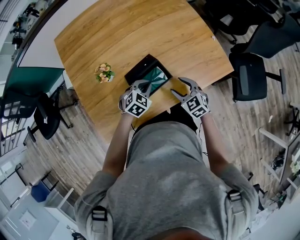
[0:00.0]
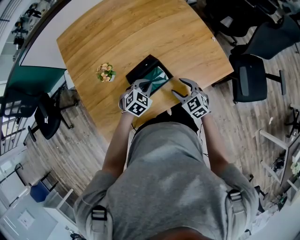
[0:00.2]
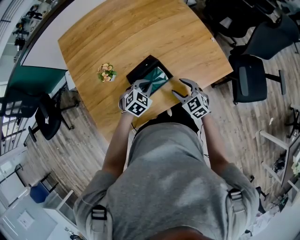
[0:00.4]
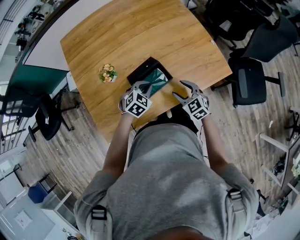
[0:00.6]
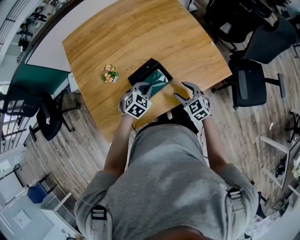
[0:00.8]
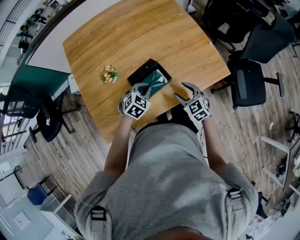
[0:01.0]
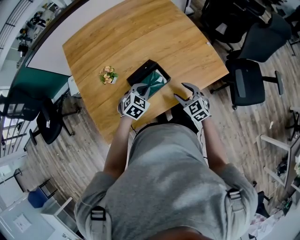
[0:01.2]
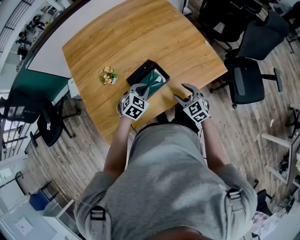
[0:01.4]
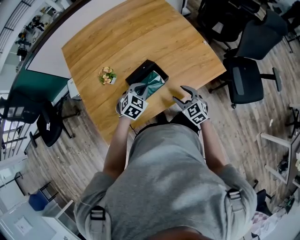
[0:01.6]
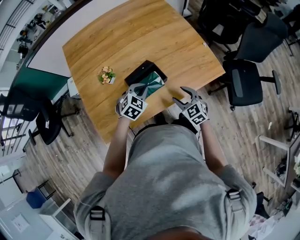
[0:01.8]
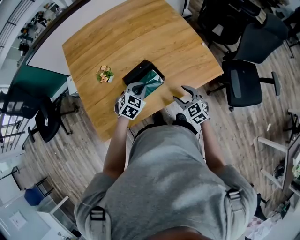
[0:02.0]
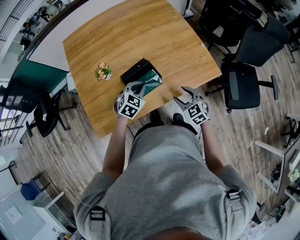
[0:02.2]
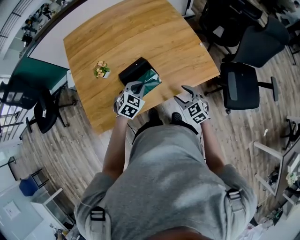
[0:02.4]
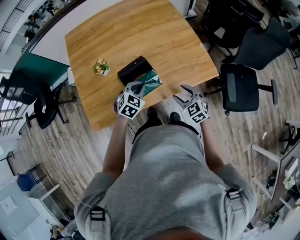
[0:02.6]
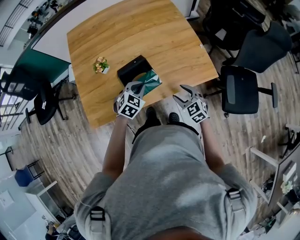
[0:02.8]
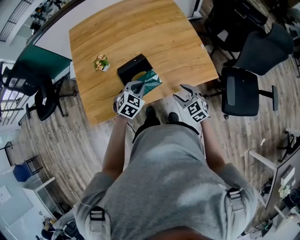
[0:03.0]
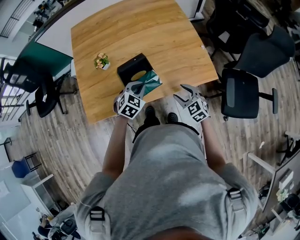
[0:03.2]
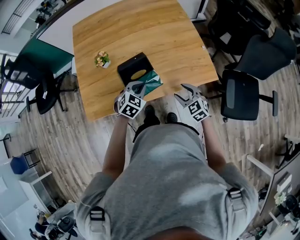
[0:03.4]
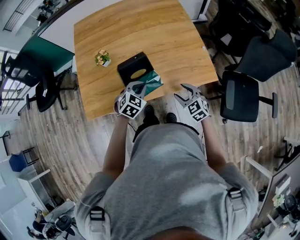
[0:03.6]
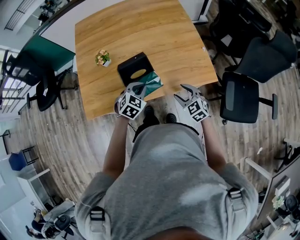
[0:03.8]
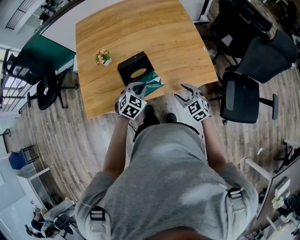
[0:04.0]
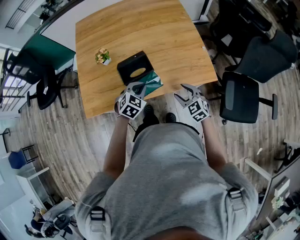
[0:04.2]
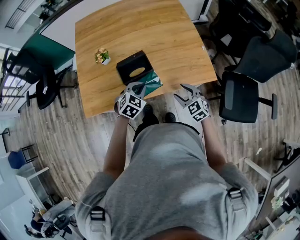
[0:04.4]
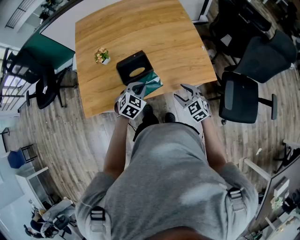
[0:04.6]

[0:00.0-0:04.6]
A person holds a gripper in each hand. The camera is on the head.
0:00.0 to 0:01.6: The right gripper goes approximately 5 cm backward, while the left gripper moves upward, approximately 5 cm.
0:01.6 to 0:03.0: Both grippers travel together to the right, approximately 10 cm.
0:03.0 to 0:04.6: The grippers make only small movements.

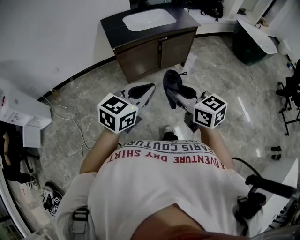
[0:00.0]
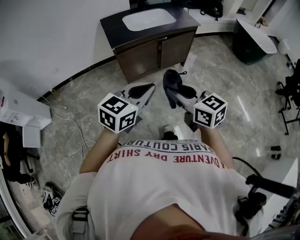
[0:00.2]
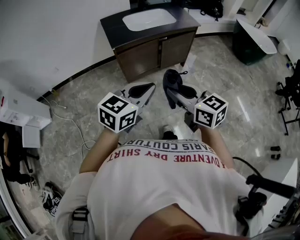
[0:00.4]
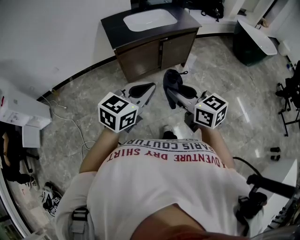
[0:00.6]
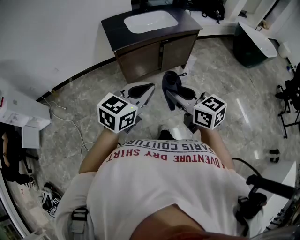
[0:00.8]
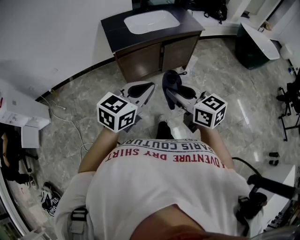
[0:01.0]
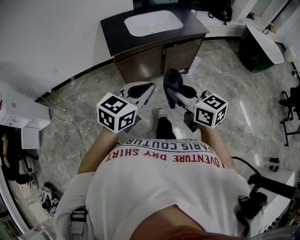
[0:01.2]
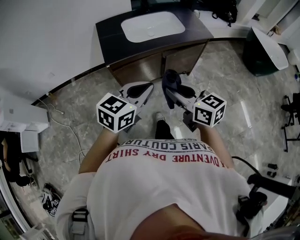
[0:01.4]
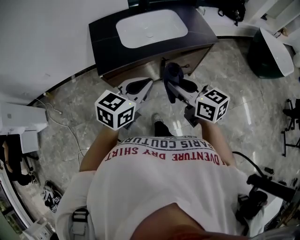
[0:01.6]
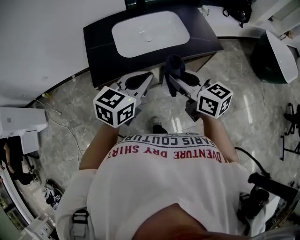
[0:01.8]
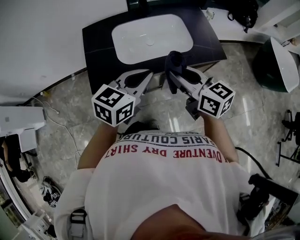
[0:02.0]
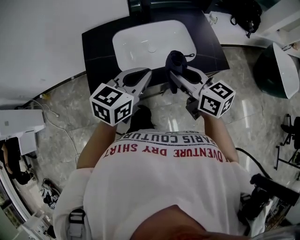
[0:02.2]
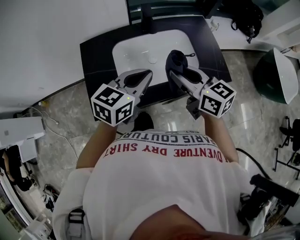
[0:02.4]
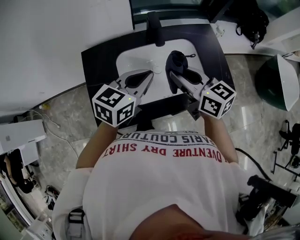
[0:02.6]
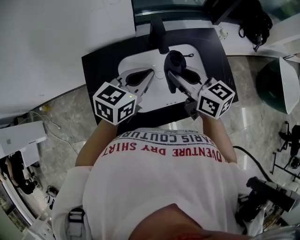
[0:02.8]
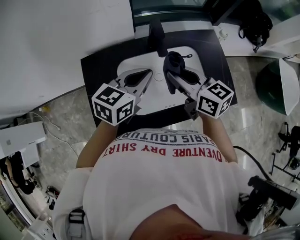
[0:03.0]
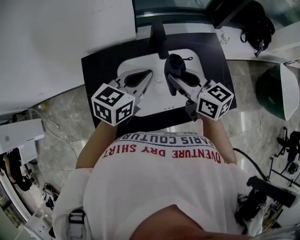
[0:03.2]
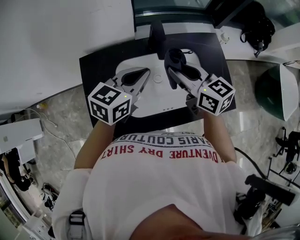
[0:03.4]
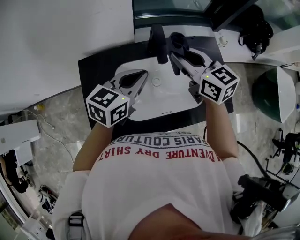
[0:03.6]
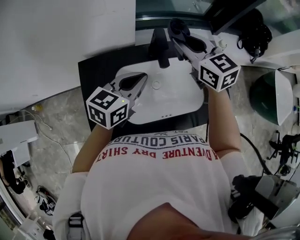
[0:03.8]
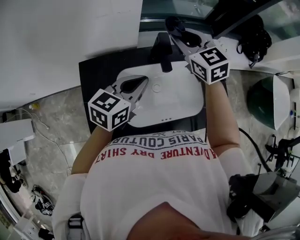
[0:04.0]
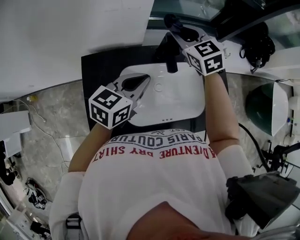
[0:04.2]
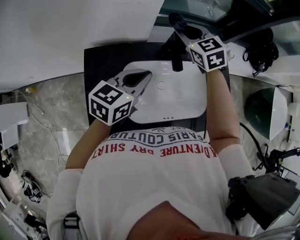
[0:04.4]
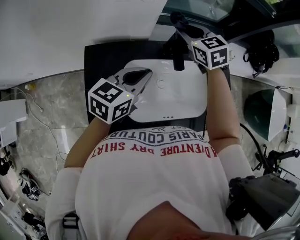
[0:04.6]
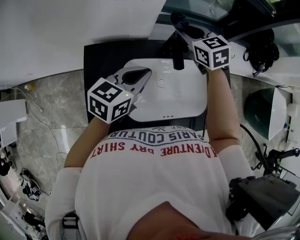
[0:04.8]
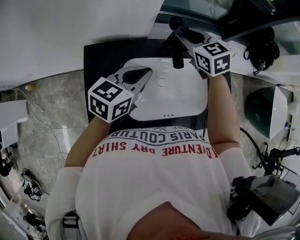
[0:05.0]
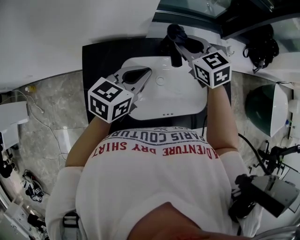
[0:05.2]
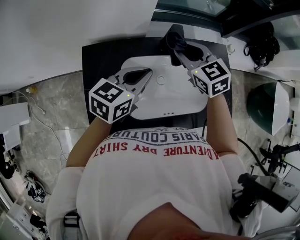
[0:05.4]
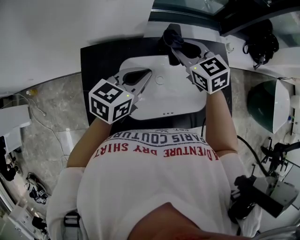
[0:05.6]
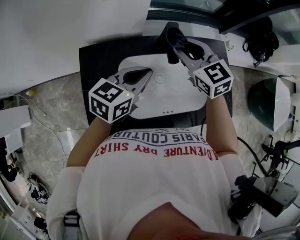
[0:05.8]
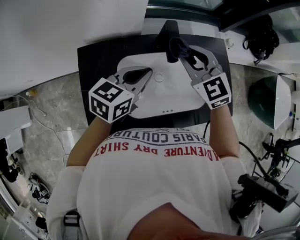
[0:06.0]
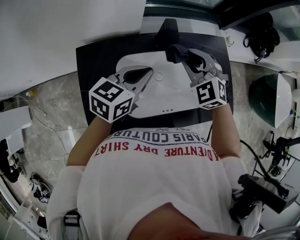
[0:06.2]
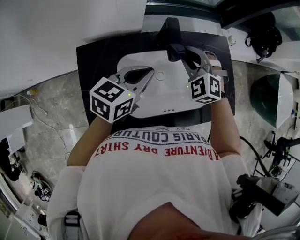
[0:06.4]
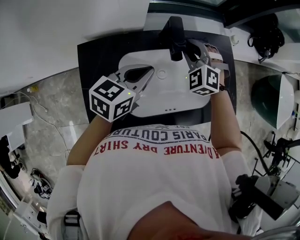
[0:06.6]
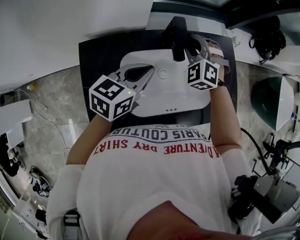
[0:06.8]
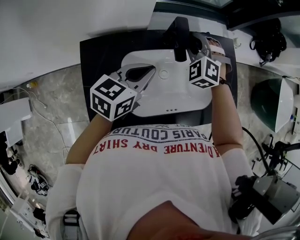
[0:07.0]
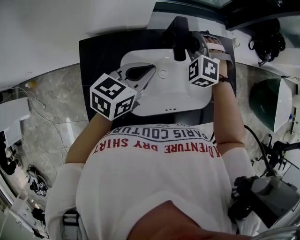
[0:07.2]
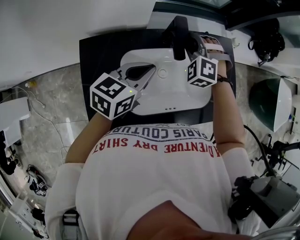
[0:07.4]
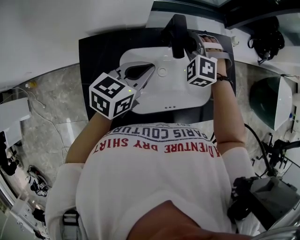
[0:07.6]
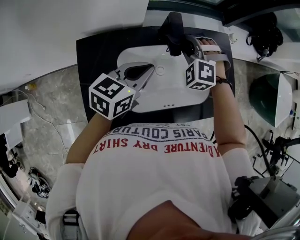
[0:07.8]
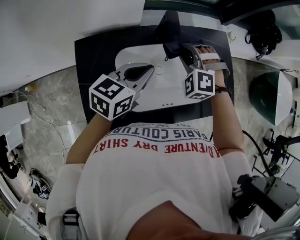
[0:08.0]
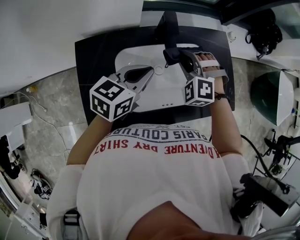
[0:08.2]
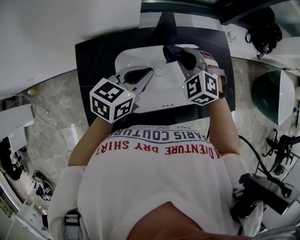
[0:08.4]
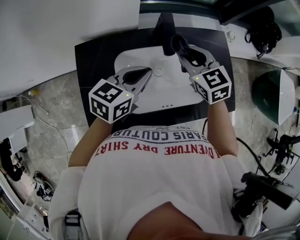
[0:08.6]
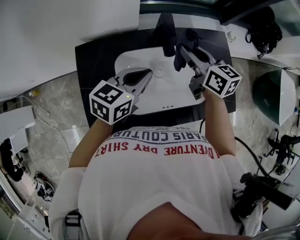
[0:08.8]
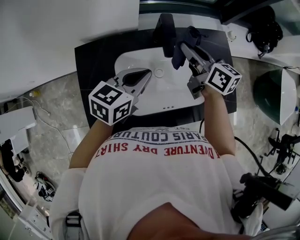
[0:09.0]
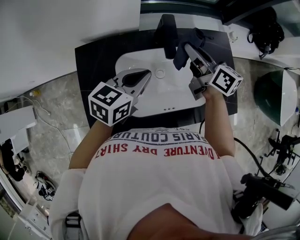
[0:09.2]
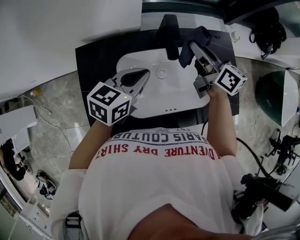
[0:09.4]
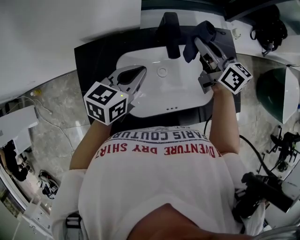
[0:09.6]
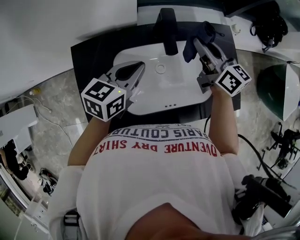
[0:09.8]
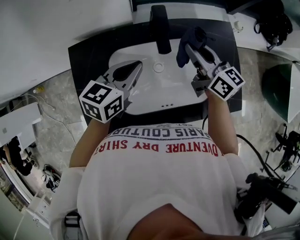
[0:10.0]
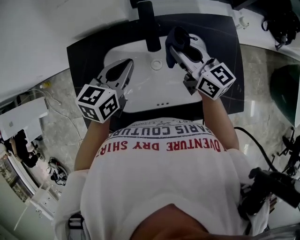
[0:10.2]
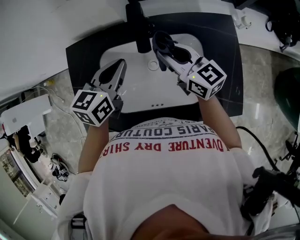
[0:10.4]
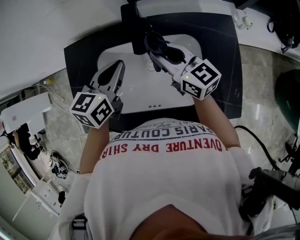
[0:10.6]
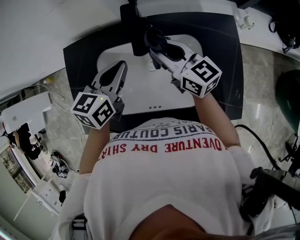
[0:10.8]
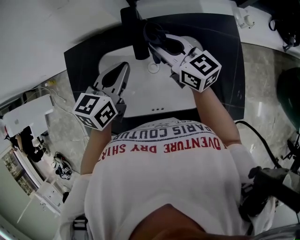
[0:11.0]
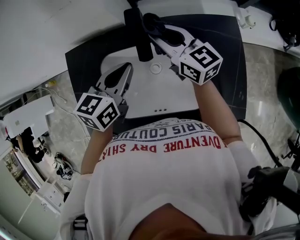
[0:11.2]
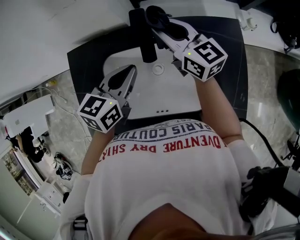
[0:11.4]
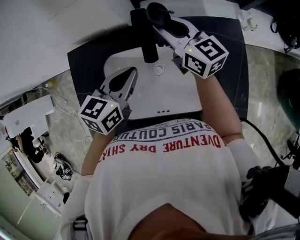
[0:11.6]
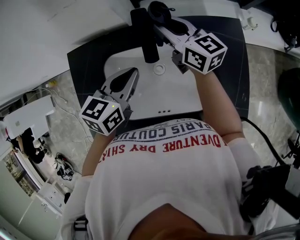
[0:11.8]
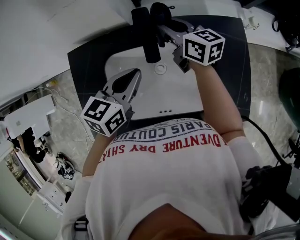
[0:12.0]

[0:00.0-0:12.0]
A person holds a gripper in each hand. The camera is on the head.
0:00.0 to 0:01.6: Both grippers travel together forward, some 40 cm.
0:01.6 to 0:03.0: The pair of grippers is taken forward, approximately 50 cm.
0:03.0 to 0:04.4: The left gripper shifts roughly 5 cm to the left. Meanwhile the right gripper travels forward by about 25 cm, and changes its angle by about 40 degrees.
0:04.4 to 0:06.0: The right gripper shifts some 10 cm backward.
0:06.0 to 0:07.6: The right gripper goes roughly 10 cm downward and forward, and rotates around the line of its fingers by roughly 40 degrees, counterclockwise from behind.
0:07.6 to 0:09.0: The right gripper travels upward by about 5 cm, and twists about 100 degrees clockwise, seen from behind.
0:09.0 to 0:10.4: The left gripper shifts by about 5 cm, and swivels about 20 degrees, while the right gripper is displaced downward by roughly 5 cm, and swivels some 20 degrees.
0:10.4 to 0:12.0: The right gripper travels forward by some 15 cm.

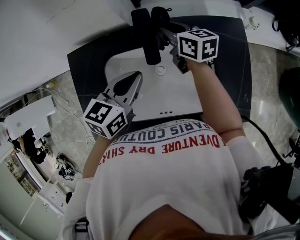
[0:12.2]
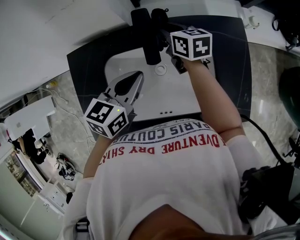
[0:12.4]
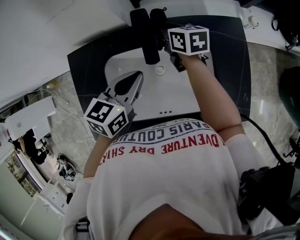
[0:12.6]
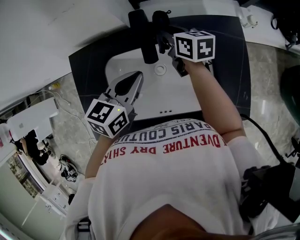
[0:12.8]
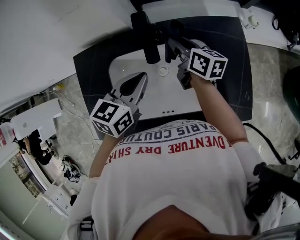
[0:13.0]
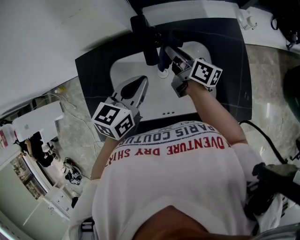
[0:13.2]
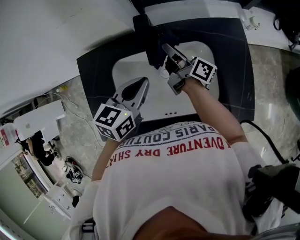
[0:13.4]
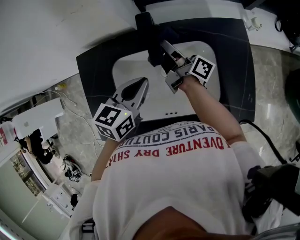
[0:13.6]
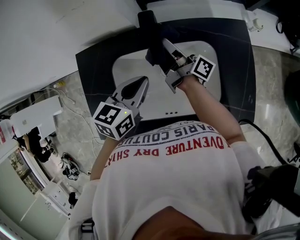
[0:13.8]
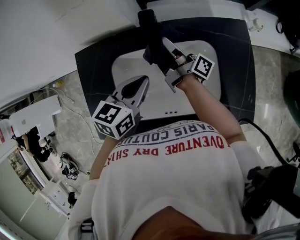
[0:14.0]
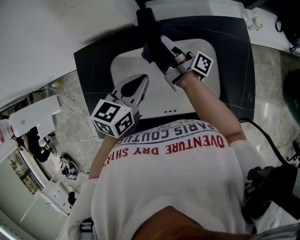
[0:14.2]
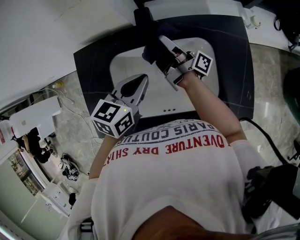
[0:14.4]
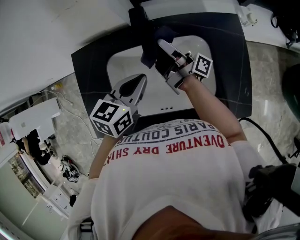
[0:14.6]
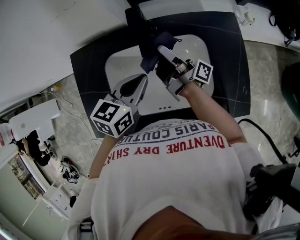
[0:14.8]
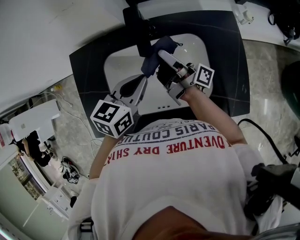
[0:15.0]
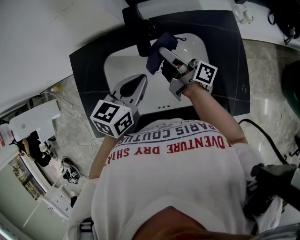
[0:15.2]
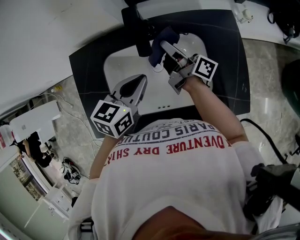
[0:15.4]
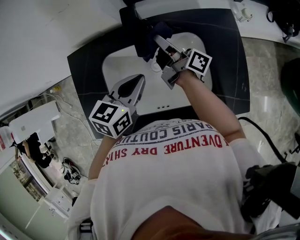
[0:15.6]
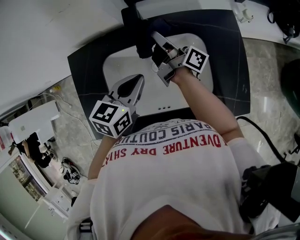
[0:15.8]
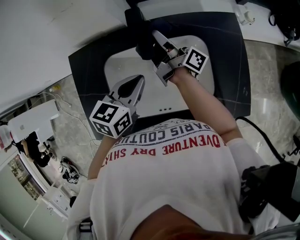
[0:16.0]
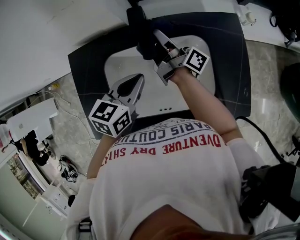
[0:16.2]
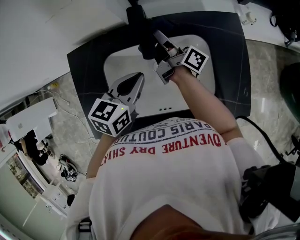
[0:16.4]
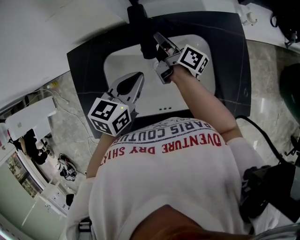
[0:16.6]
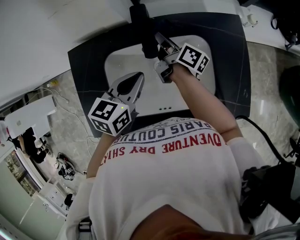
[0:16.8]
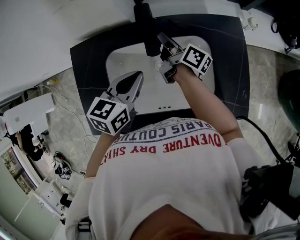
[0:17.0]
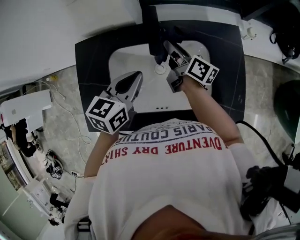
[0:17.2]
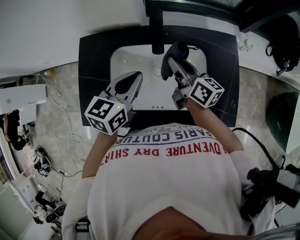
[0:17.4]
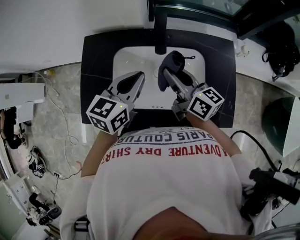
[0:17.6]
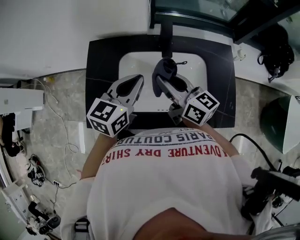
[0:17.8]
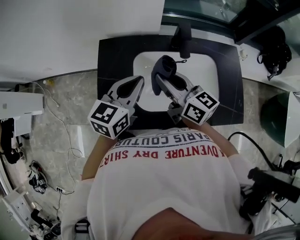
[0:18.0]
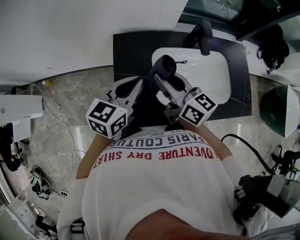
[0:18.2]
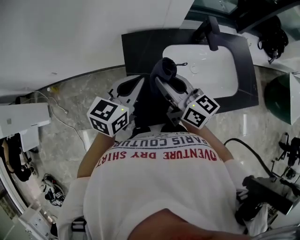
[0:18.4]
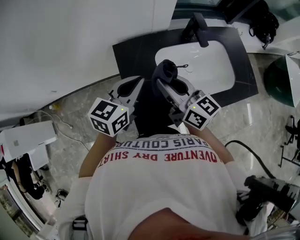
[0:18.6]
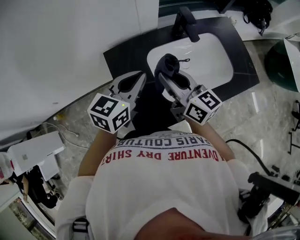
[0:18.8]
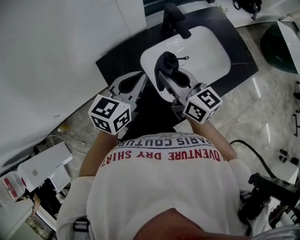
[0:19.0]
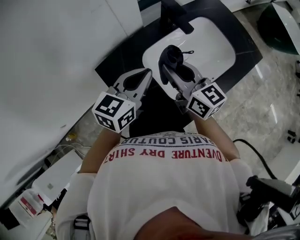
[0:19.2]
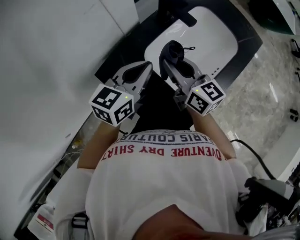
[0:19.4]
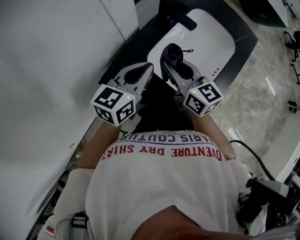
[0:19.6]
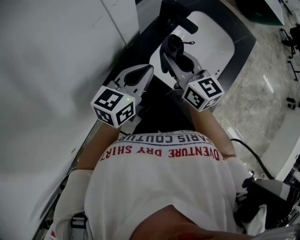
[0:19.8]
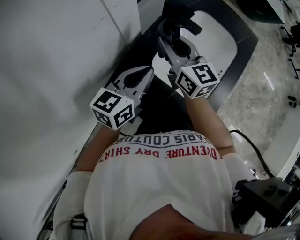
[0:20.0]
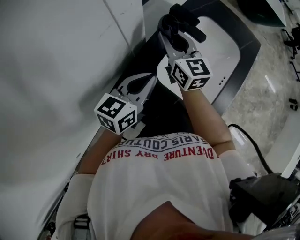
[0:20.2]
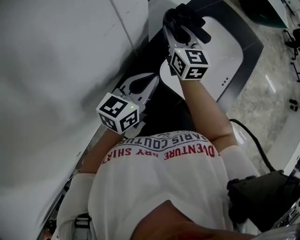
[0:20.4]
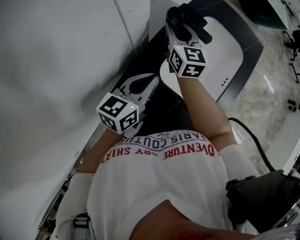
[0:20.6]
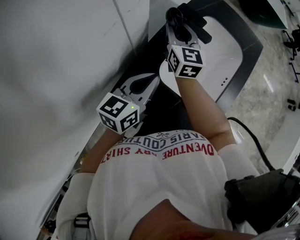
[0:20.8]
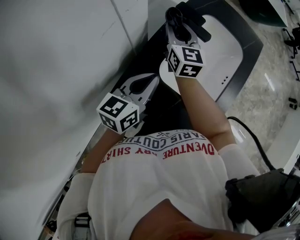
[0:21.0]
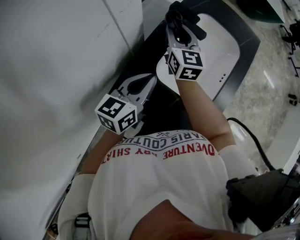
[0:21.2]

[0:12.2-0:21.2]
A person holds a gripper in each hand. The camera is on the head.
0:12.2 to 0:13.8: The right gripper tilts its fingers approximately 30 degrees upward.
0:13.8 to 0:15.2: The right gripper travels backward by roughly 5 cm.
0:15.2 to 0:16.6: The right gripper shifts some 5 cm forward.
0:16.6 to 0:18.2: The right gripper shifts roughly 40 cm to the left, backward and upward, and twists some 40 degrees counterclockwise, seen from behind; the left gripper heads to the left, covering some 25 cm.
0:18.2 to 0:19.8: The right gripper changes place by approximately 15 cm, and turns by approximately 50 degrees. Meanwhile the left gripper shifts by about 15 cm, and rotates about 50 degrees.
0:19.8 to 0:21.2: The right gripper goes approximately 15 cm forward, and rotates roughly 30 degrees.
